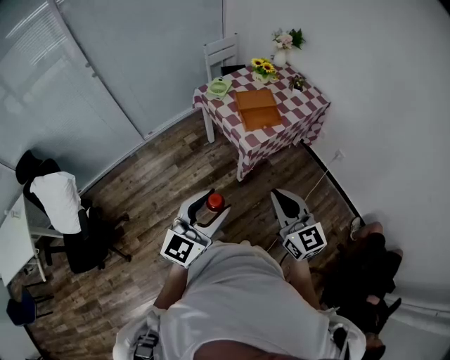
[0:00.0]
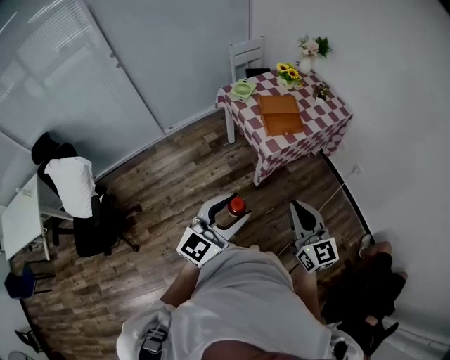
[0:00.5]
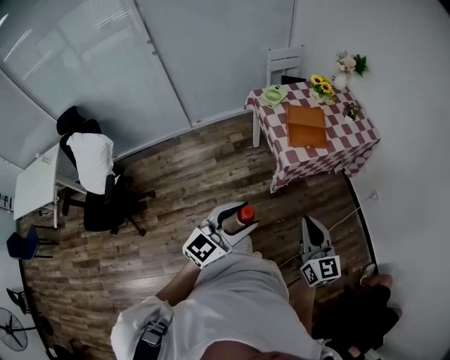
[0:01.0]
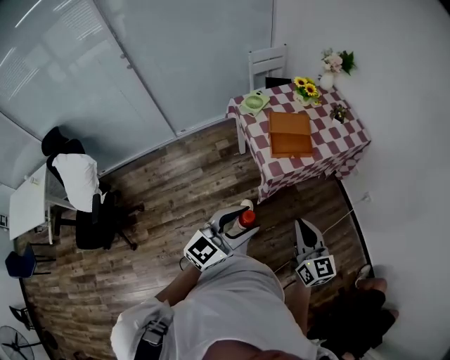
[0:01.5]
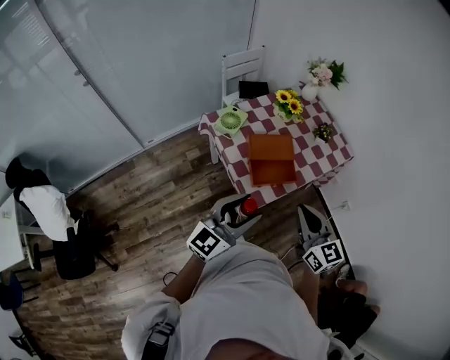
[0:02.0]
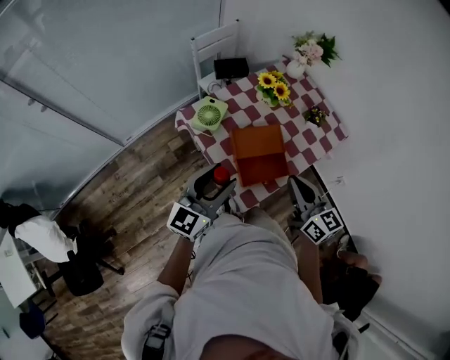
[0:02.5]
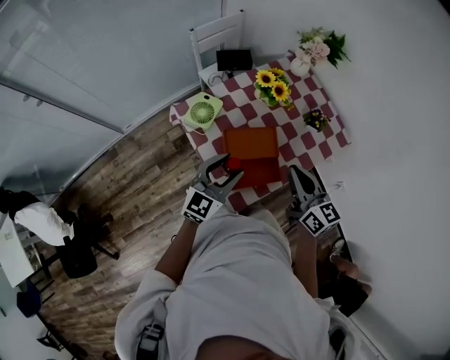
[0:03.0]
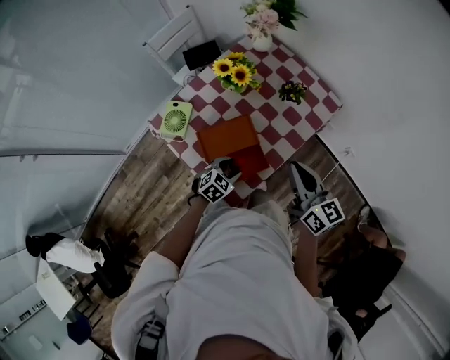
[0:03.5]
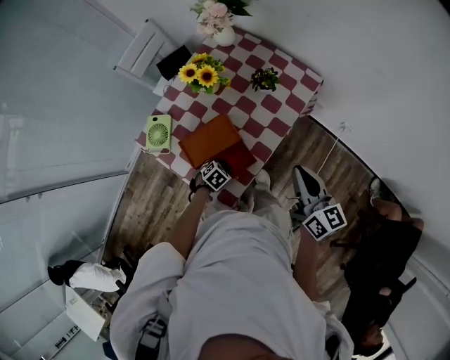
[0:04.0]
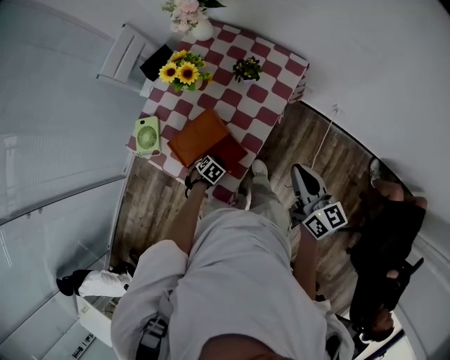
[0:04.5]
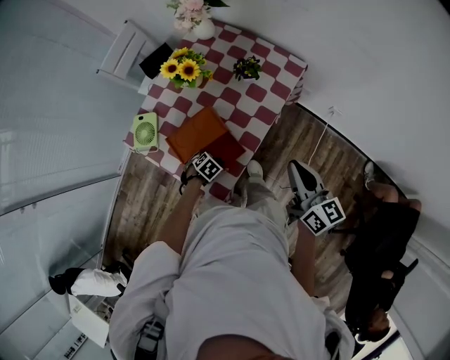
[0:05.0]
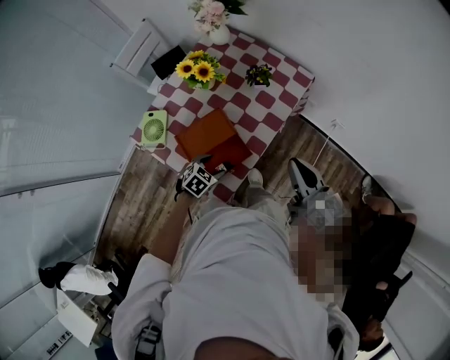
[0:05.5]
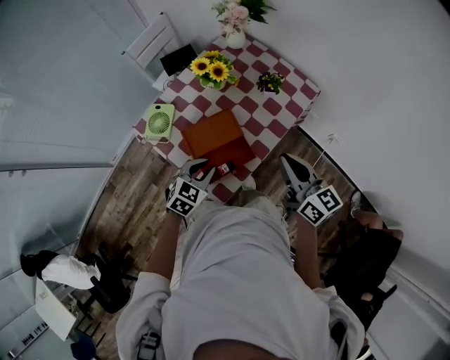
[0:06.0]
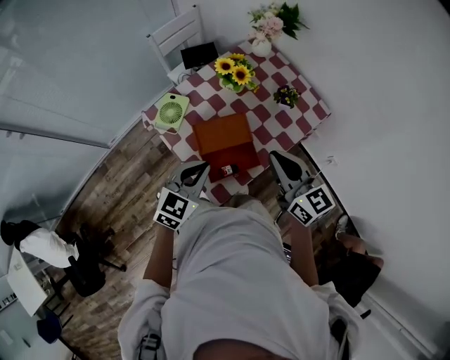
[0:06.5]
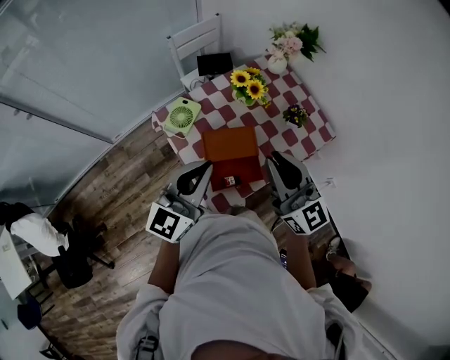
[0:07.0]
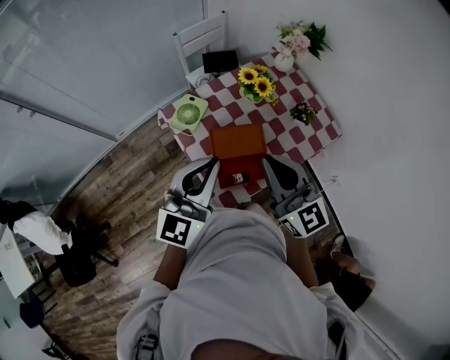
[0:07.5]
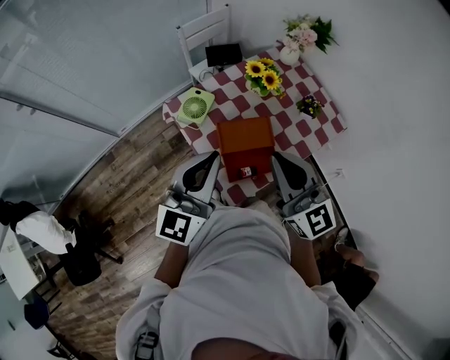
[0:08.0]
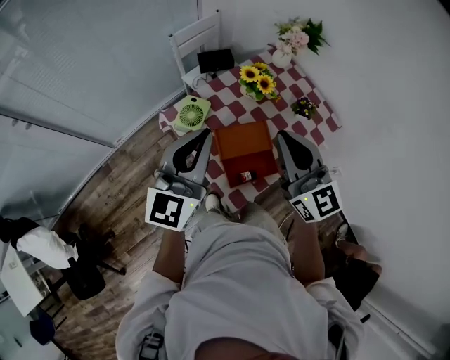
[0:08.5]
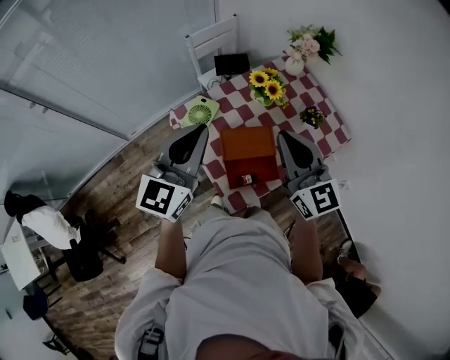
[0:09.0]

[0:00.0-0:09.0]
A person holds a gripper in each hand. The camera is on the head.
0:00.0 to 0:02.0: Both grippers move forward, roughly 35 cm.
0:02.0 to 0:04.5: The right gripper shifts by approximately 30 cm, and changes its angle by approximately 40 degrees. The left gripper is displaced downward by roughly 50 cm, and points its fingers approximately 80 degrees further downward.
0:04.5 to 0:07.0: The right gripper shifts by approximately 25 cm, and changes its angle by approximately 50 degrees; the left gripper shifts about 50 cm upward, angles its fingers upward, by approximately 80 degrees, and closes.
0:07.0 to 0:09.0: The left gripper is displaced upward and forward by approximately 10 cm. Meanwhile the right gripper shifts by roughly 5 cm.

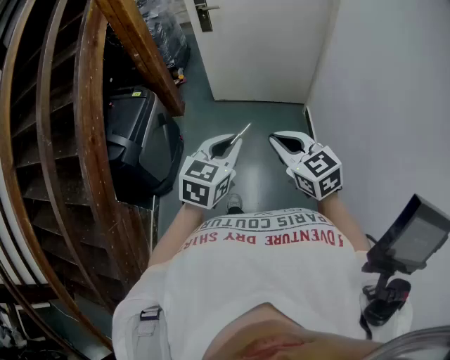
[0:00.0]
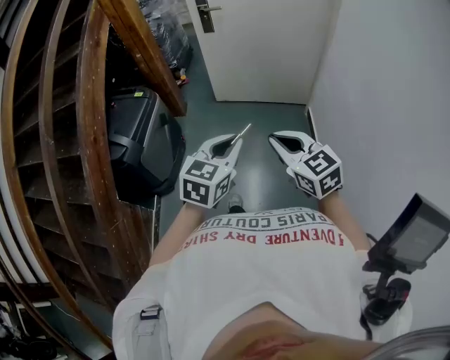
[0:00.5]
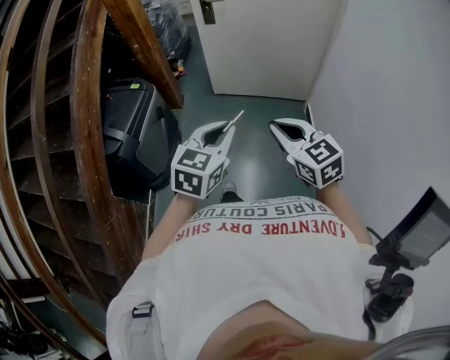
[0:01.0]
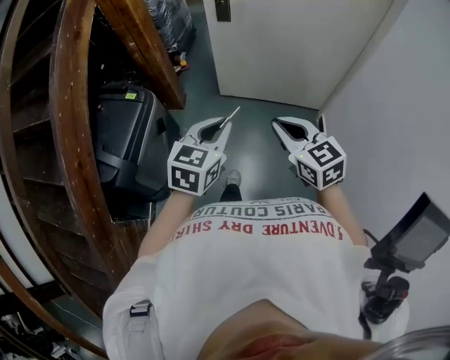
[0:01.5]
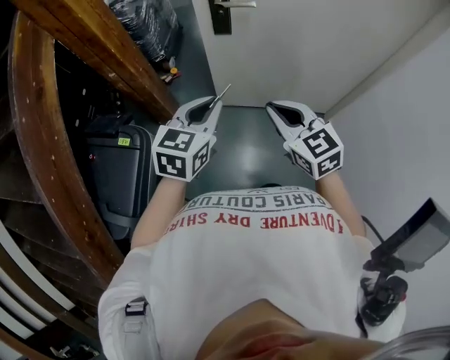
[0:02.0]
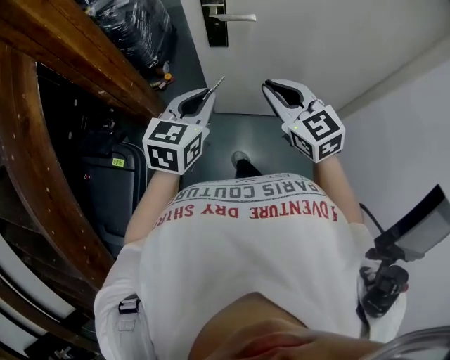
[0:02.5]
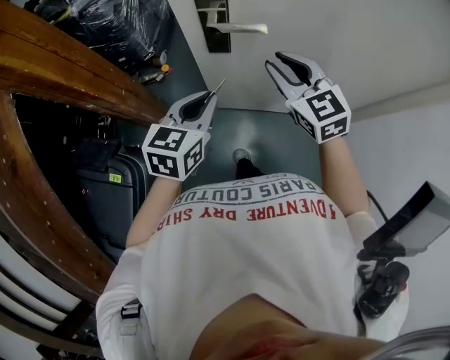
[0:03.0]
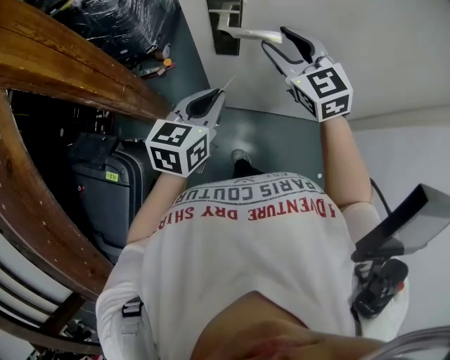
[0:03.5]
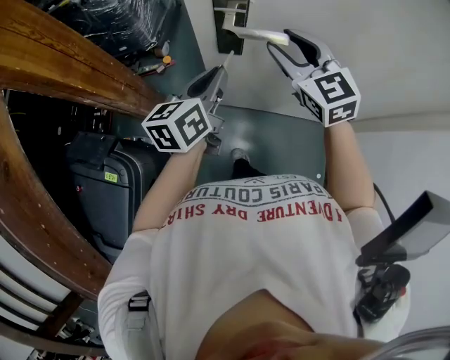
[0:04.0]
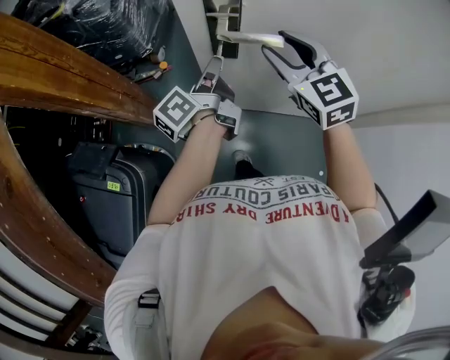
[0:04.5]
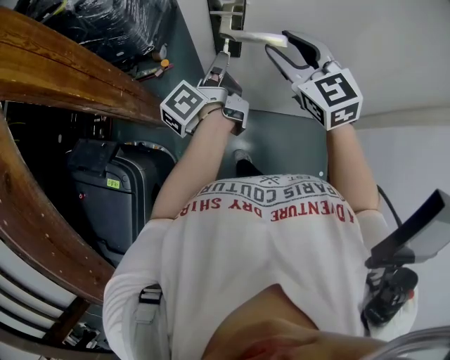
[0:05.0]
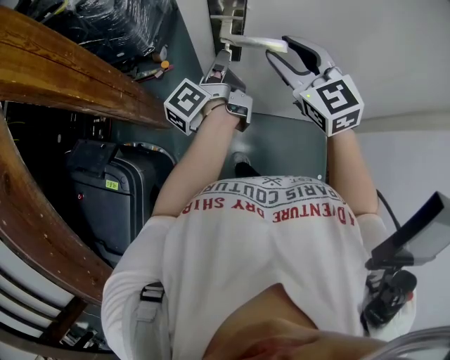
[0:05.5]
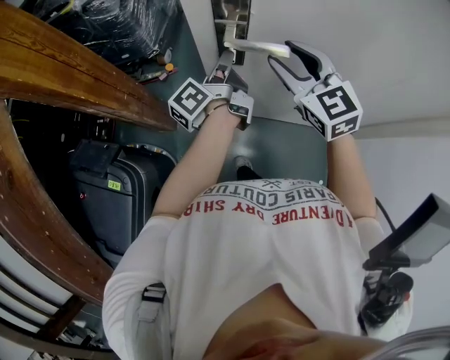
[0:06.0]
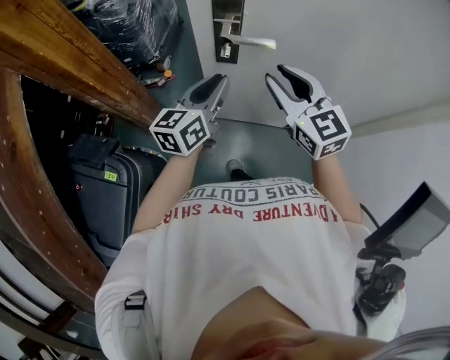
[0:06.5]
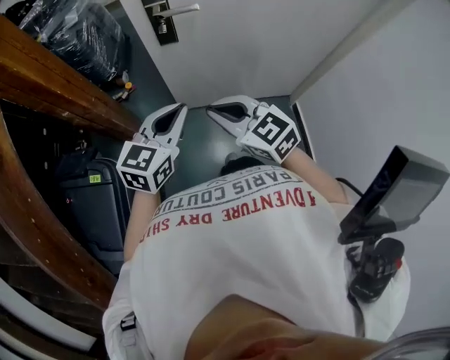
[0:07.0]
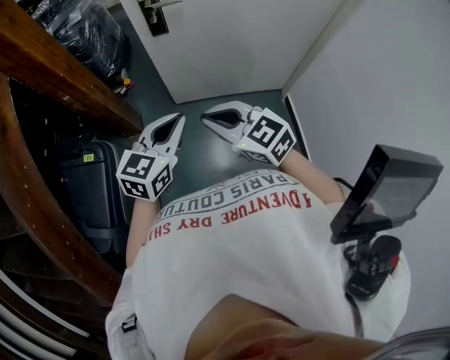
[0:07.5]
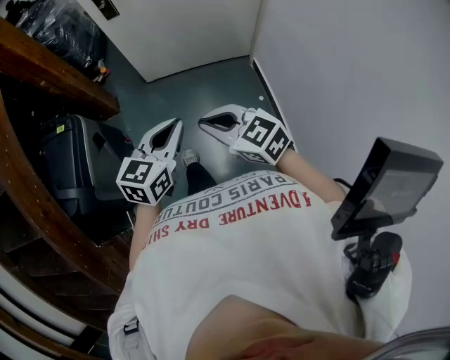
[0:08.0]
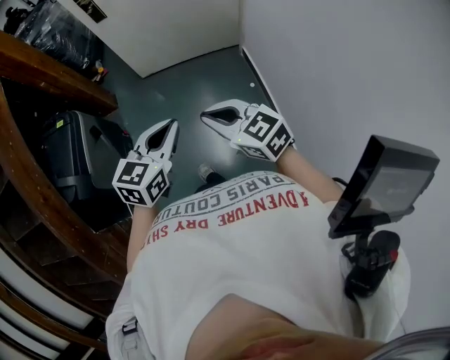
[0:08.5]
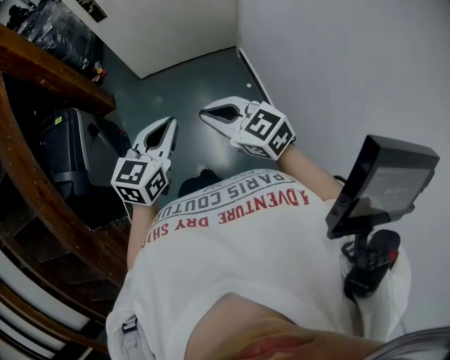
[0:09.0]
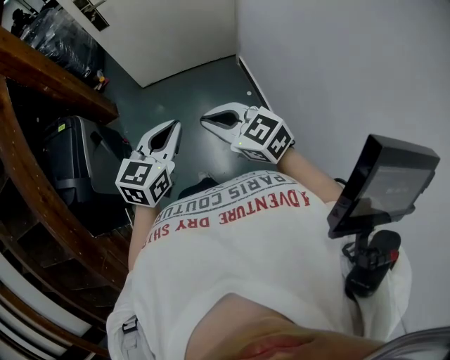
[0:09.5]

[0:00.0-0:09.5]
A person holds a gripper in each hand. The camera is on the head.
0:00.0 to 0:02.0: The two grippers travel together, forward, some 60 cm.
0:02.0 to 0:04.0: The grippers both shift forward by some 35 cm. The right gripper opens up. The left gripper changes its angle by some 30 degrees.
0:04.0 to 0:05.5: The left gripper travels forward by about 5 cm, and rolls counterclockwise, seen from behind, by some 50 degrees.
0:05.5 to 0:07.5: The pair of grippers is taken backward, some 50 cm. The right gripper closes its fingers, while the left gripper rolls clockwise, seen from behind, by approximately 80 degrees.
0:07.5 to 0:09.5: Both grippers are carried backward and to the right, roughly 50 cm.

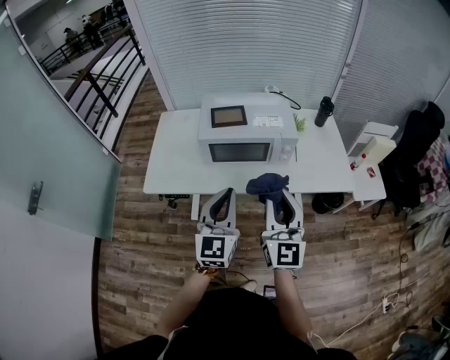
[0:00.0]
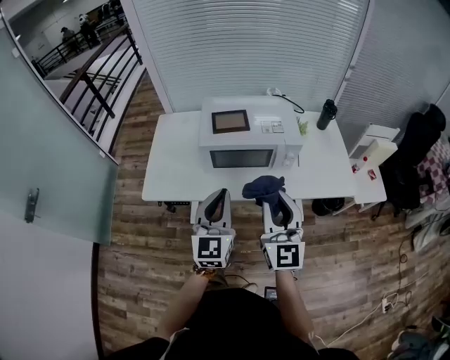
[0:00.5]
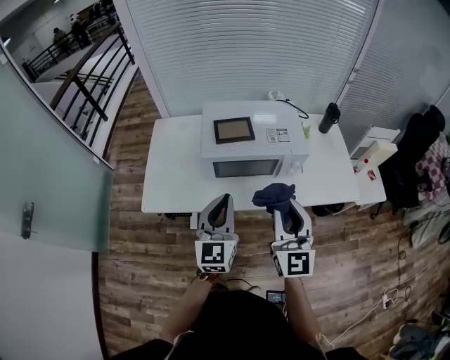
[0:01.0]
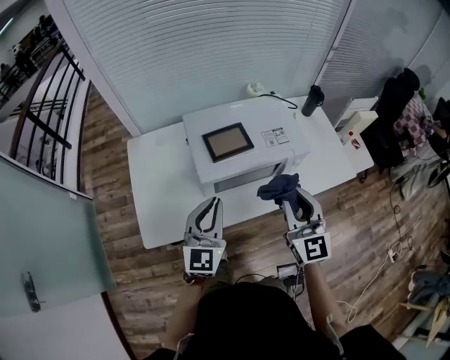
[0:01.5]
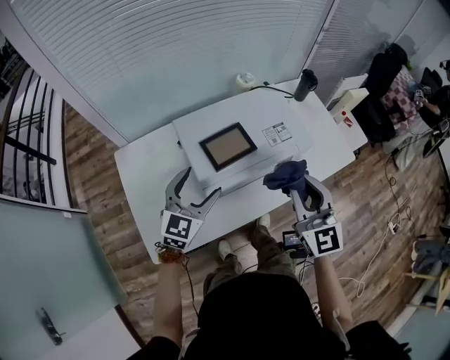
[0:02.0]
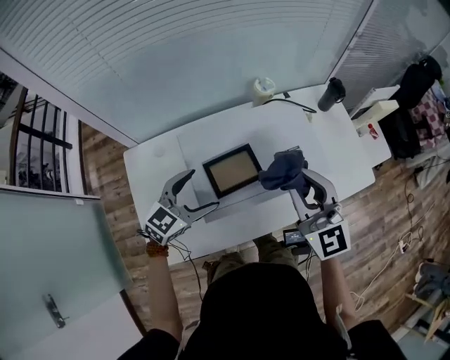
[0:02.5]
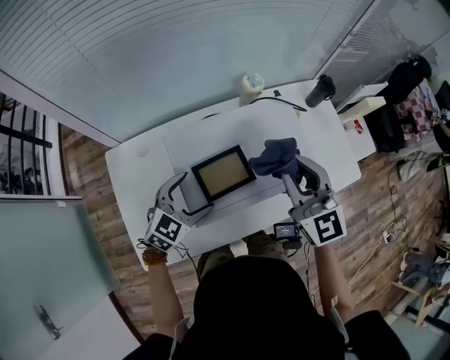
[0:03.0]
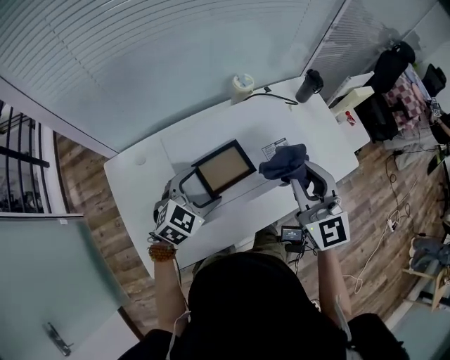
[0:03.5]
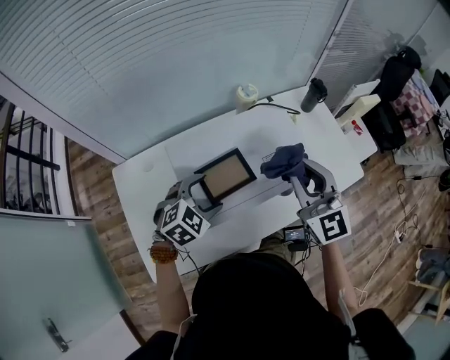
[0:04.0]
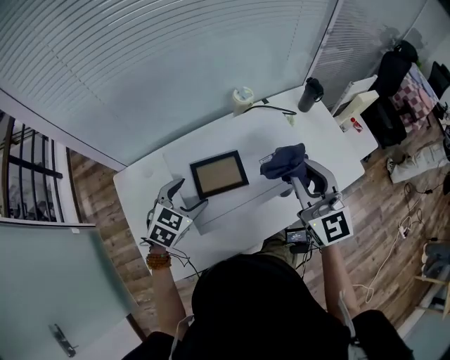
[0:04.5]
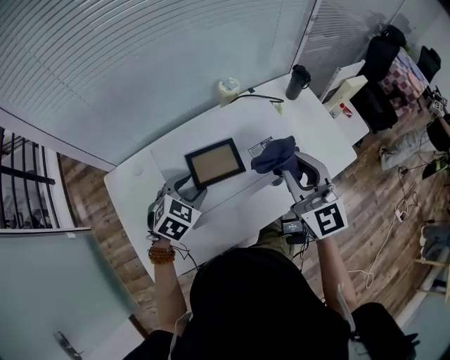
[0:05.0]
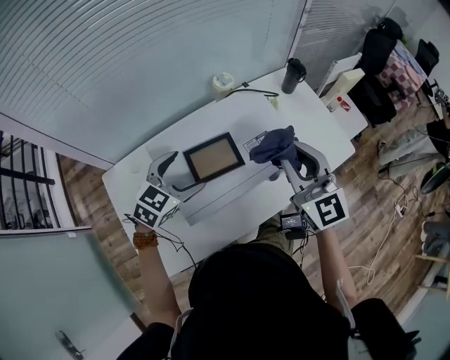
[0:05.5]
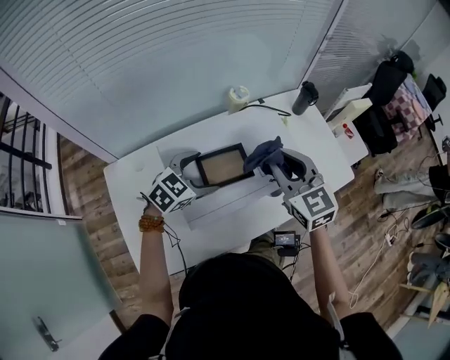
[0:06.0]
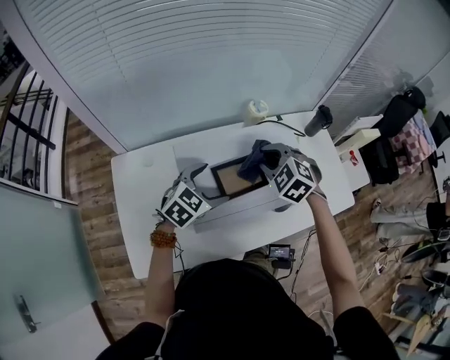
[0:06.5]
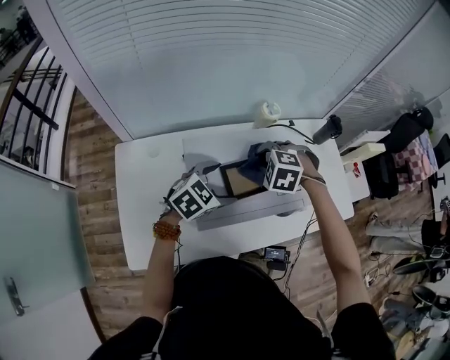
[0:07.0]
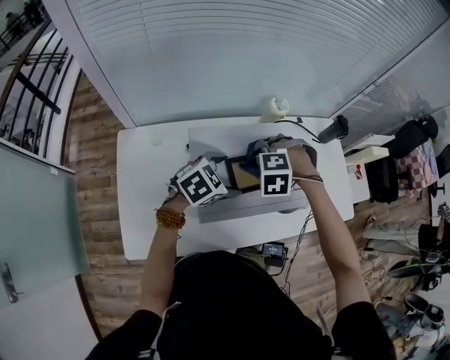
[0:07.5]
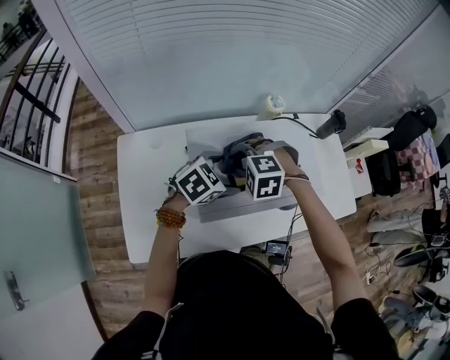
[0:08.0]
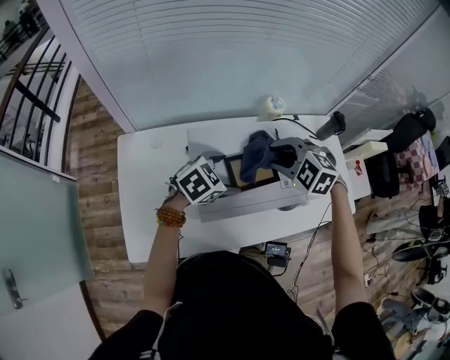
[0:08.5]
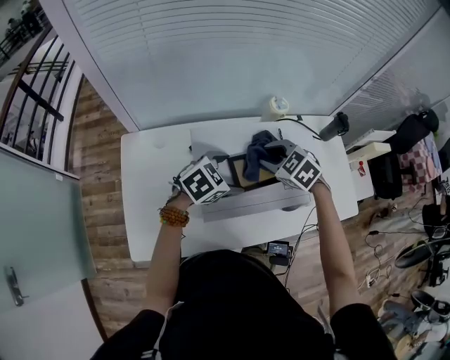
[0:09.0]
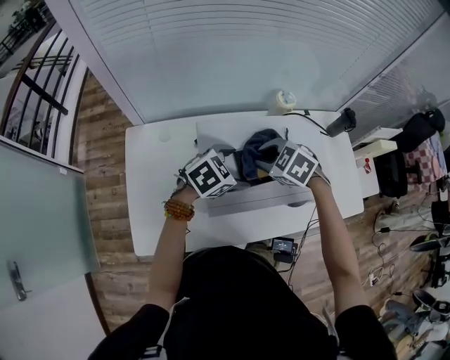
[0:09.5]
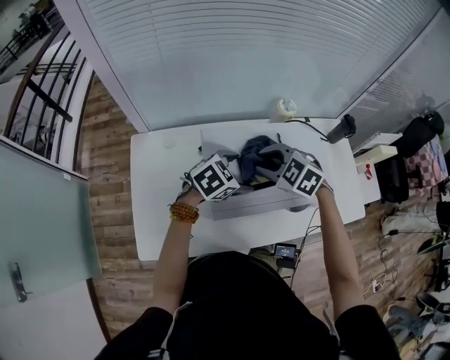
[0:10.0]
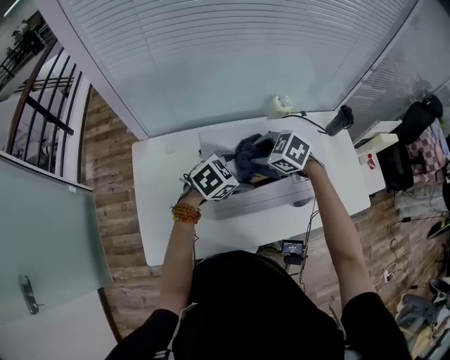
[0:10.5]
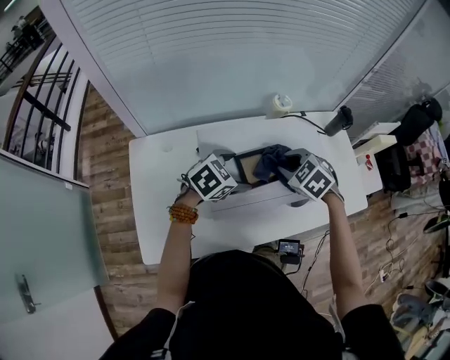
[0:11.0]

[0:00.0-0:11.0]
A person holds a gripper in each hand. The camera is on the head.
0:00.0 to 0:02.0: The right gripper shifts by about 25 cm, and swivels some 20 degrees; the left gripper moves some 35 cm, rotates about 40 degrees, and opens.
0:02.0 to 0:03.5: The right gripper heads forward, covering about 10 cm; the left gripper heads forward and downward, covering some 10 cm, and swivels about 30 degrees.
0:03.5 to 0:05.5: The left gripper changes place by some 5 cm, and closes and opens again.
0:05.5 to 0:07.5: The right gripper is displaced downward and to the left by about 25 cm, and points its fingers approximately 70 degrees further downward.
0:07.5 to 0:09.0: The right gripper reaches roughly 5 cm to the left, then returns, and turns by about 50 degrees.
